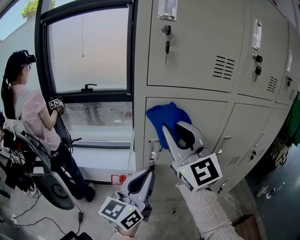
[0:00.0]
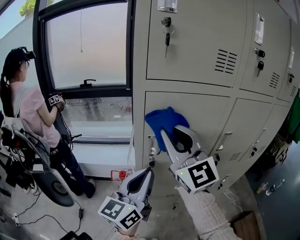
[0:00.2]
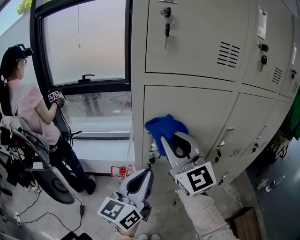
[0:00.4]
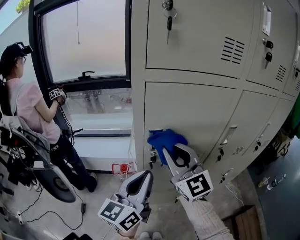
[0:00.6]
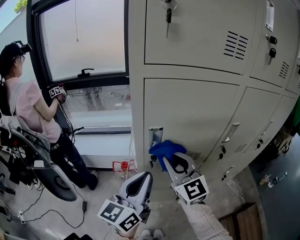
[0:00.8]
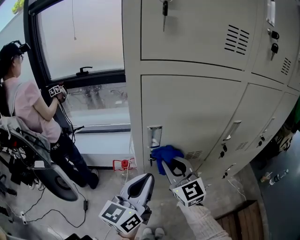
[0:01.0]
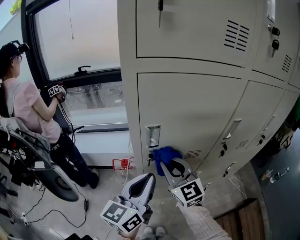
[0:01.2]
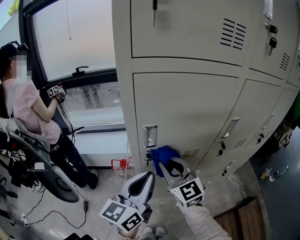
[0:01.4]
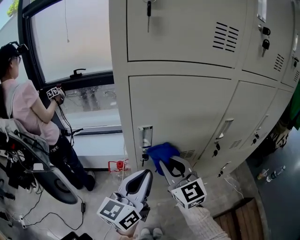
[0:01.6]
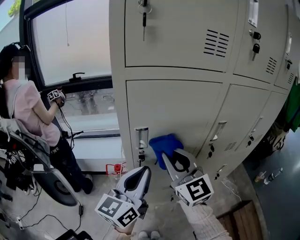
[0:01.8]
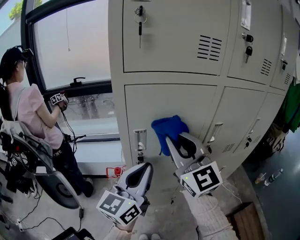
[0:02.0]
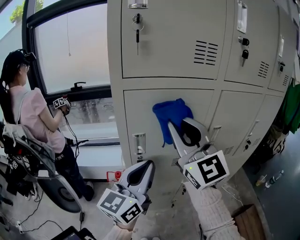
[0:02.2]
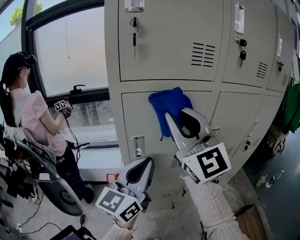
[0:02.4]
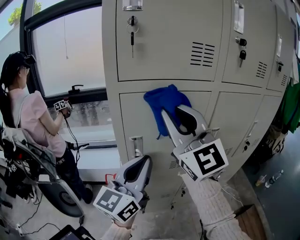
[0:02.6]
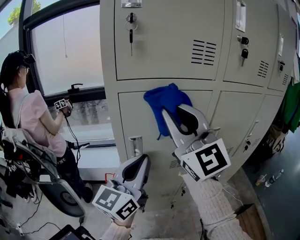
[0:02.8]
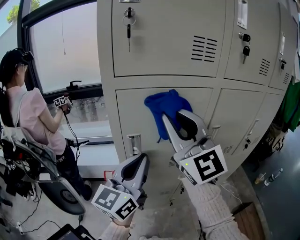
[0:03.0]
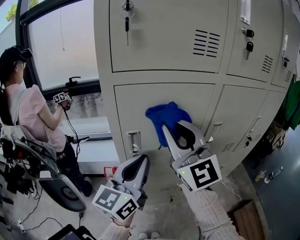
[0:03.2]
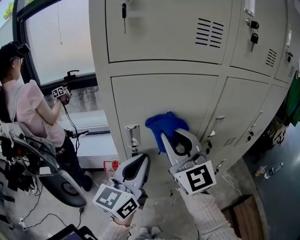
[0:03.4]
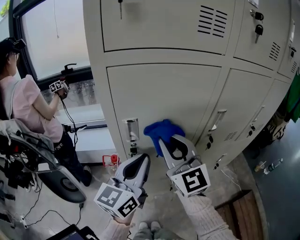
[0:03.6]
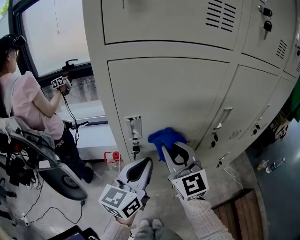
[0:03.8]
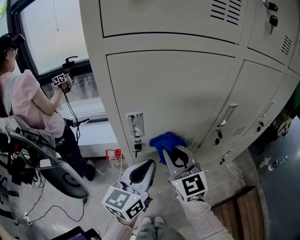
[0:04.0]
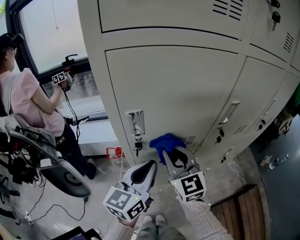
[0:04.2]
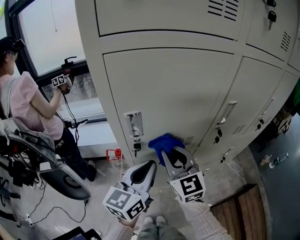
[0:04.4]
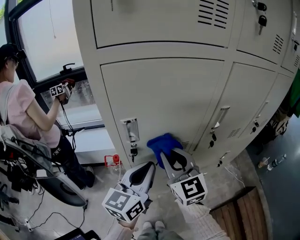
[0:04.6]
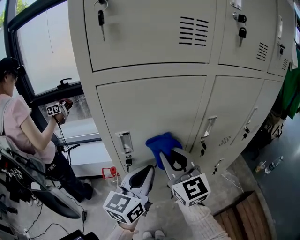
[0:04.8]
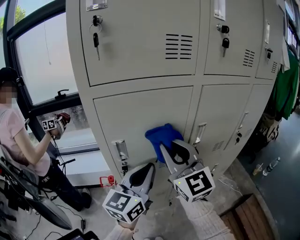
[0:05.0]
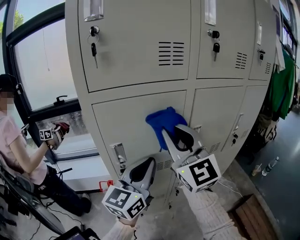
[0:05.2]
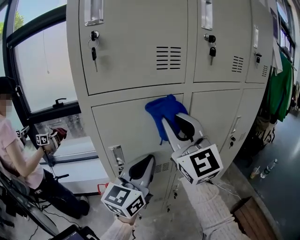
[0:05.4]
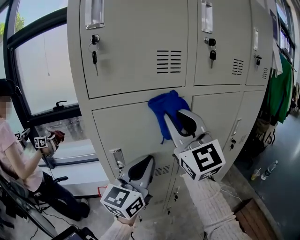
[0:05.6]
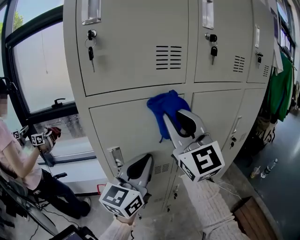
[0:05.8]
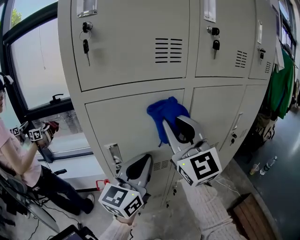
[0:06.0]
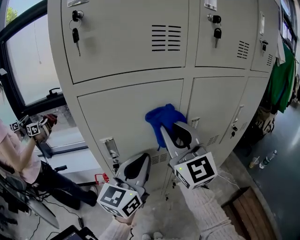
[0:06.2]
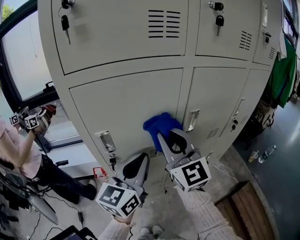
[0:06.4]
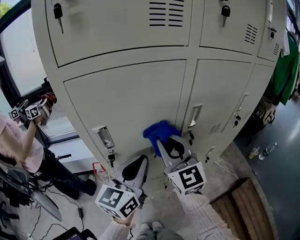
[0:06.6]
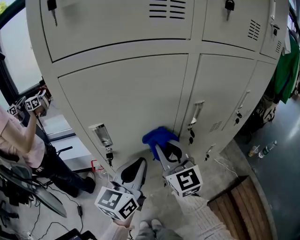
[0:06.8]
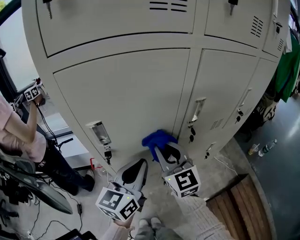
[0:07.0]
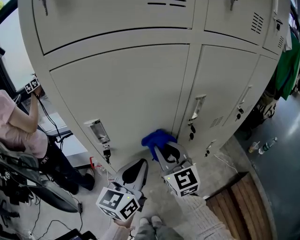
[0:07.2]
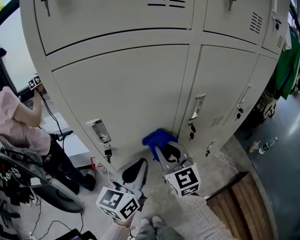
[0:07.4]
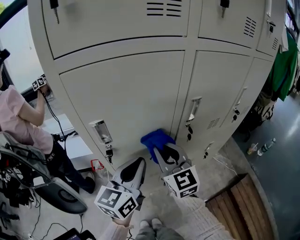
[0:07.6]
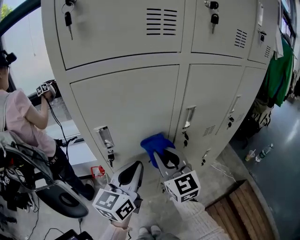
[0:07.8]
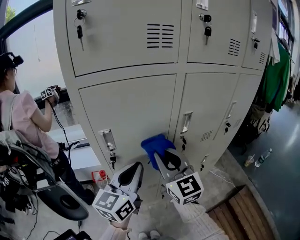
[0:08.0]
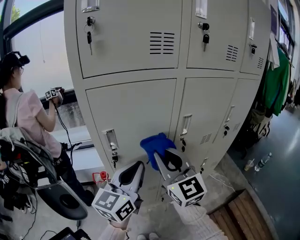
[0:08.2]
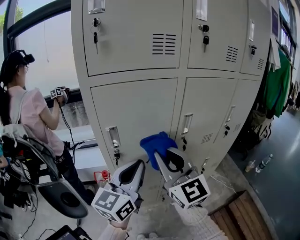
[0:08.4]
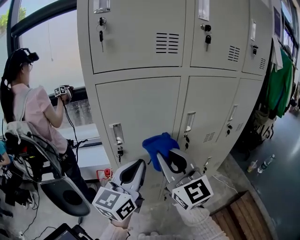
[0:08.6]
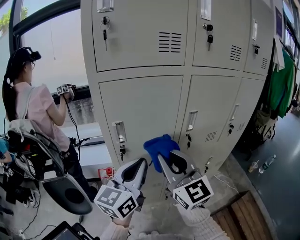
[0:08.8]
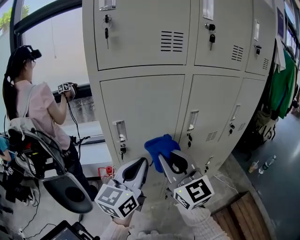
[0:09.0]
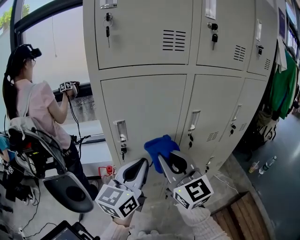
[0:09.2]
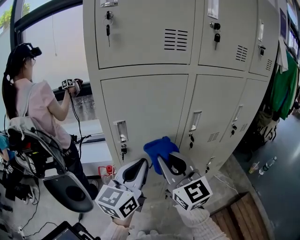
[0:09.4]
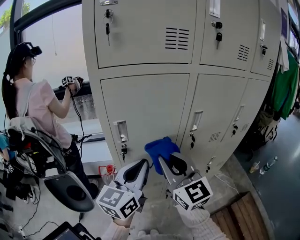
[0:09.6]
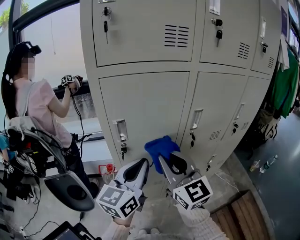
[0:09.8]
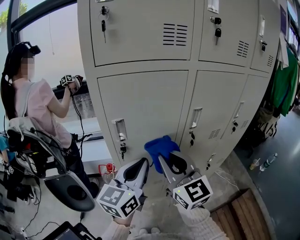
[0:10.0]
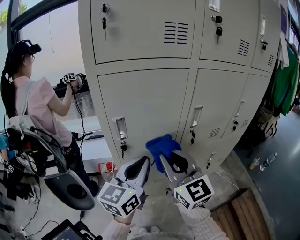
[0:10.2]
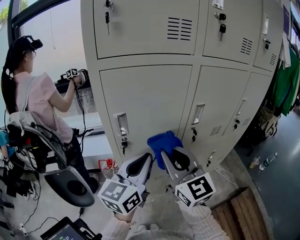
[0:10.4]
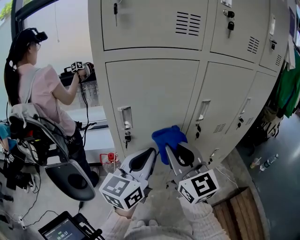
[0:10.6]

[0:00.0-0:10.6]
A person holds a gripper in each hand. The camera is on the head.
0.0 to 1.6 s: The left gripper goes roughly 5 cm downward. Meanwhile the right gripper shifts approximately 20 cm downward, and turns by roughly 20 degrees.
1.6 to 3.0 s: The right gripper moves upward, roughly 25 cm, and swivels approximately 30 degrees. The left gripper goes roughly 10 cm upward.
3.0 to 4.6 s: The left gripper is displaced downward by approximately 10 cm, while the right gripper travels downward by roughly 25 cm, and rotates about 30 degrees.
4.6 to 6.0 s: The left gripper shifts roughly 15 cm upward and to the right. The right gripper heads upward, covering approximately 20 cm, and changes its angle by roughly 20 degrees.
6.0 to 7.6 s: The left gripper travels downward by about 10 cm, while the right gripper heads downward, covering approximately 25 cm, and rotates roughly 20 degrees.
7.6 to 9.0 s: The right gripper goes approximately 15 cm upward and backward. Meanwhile the left gripper heads upward and backward, covering approximately 10 cm.
9.0 to 10.6 s: There are only small adjustments of the grippers.

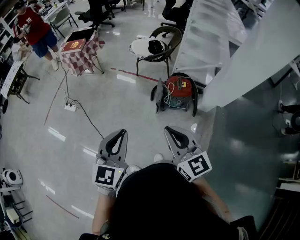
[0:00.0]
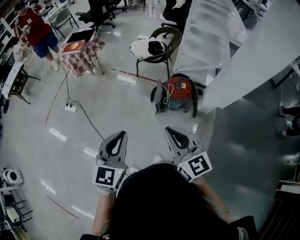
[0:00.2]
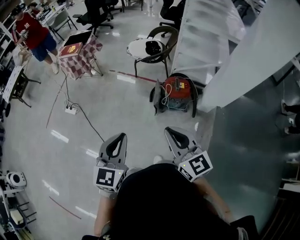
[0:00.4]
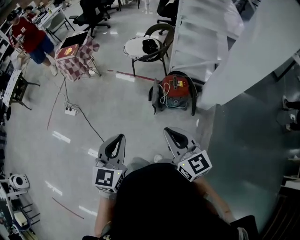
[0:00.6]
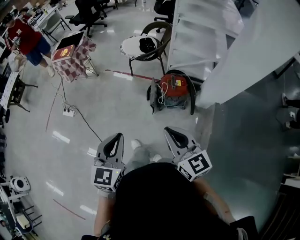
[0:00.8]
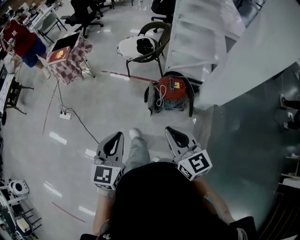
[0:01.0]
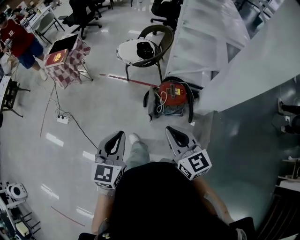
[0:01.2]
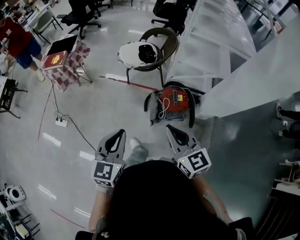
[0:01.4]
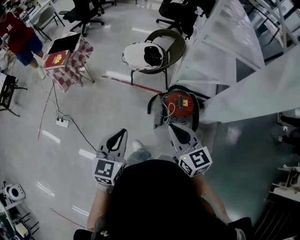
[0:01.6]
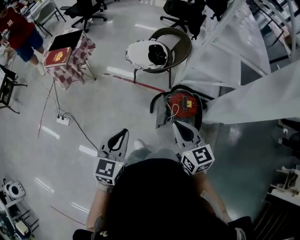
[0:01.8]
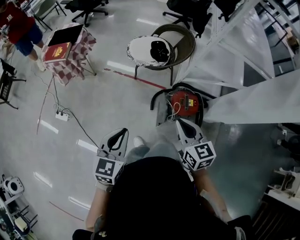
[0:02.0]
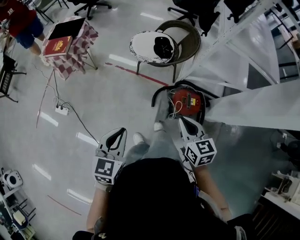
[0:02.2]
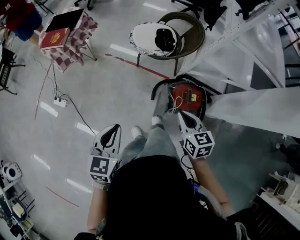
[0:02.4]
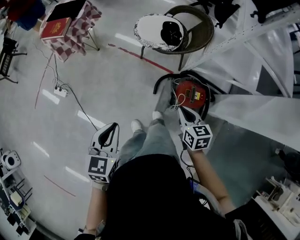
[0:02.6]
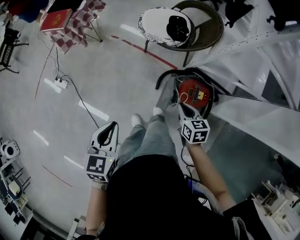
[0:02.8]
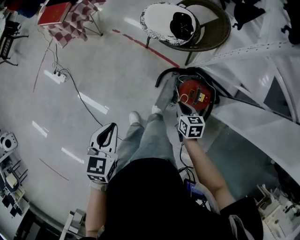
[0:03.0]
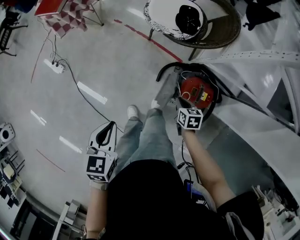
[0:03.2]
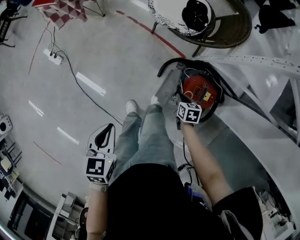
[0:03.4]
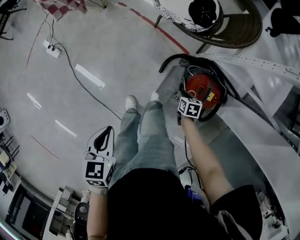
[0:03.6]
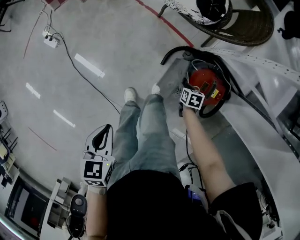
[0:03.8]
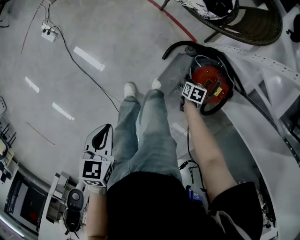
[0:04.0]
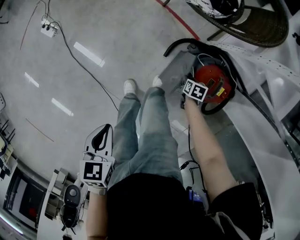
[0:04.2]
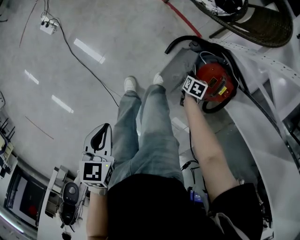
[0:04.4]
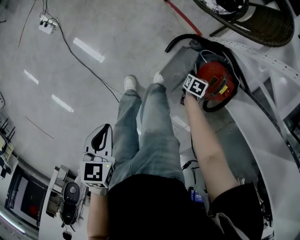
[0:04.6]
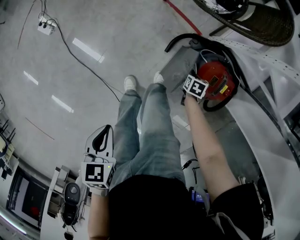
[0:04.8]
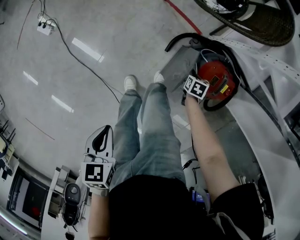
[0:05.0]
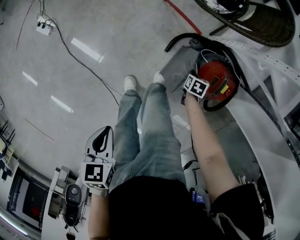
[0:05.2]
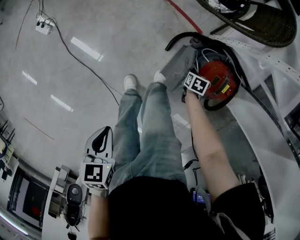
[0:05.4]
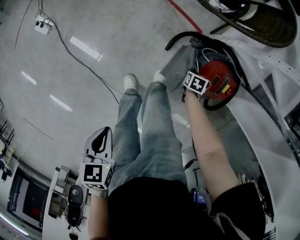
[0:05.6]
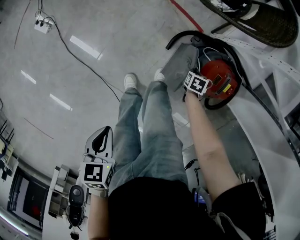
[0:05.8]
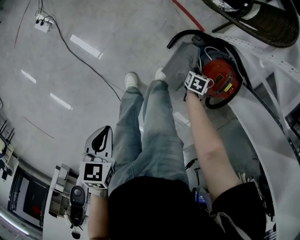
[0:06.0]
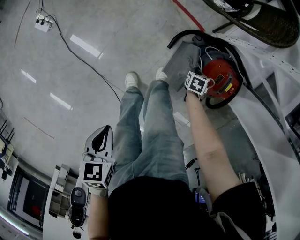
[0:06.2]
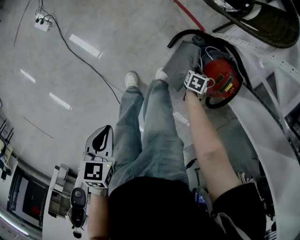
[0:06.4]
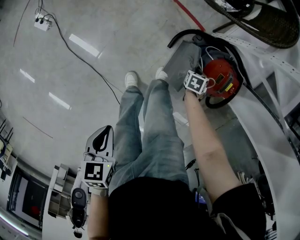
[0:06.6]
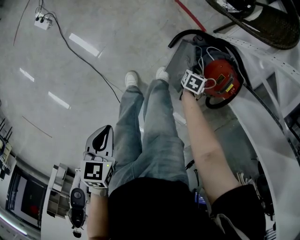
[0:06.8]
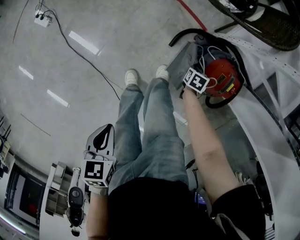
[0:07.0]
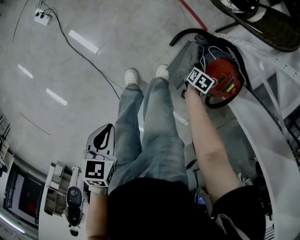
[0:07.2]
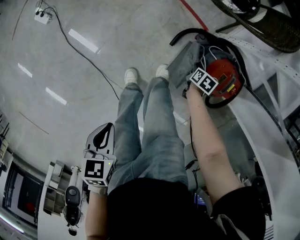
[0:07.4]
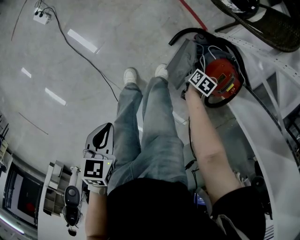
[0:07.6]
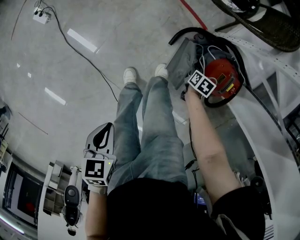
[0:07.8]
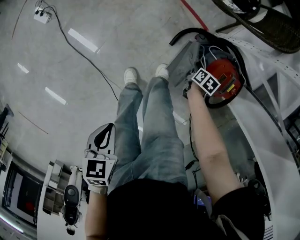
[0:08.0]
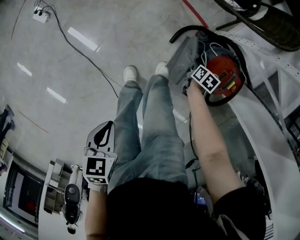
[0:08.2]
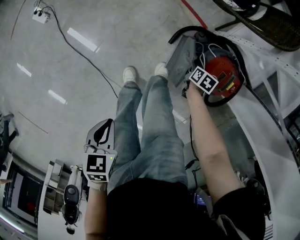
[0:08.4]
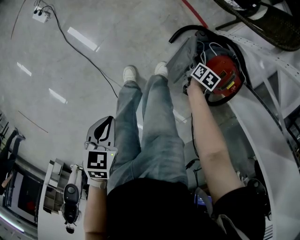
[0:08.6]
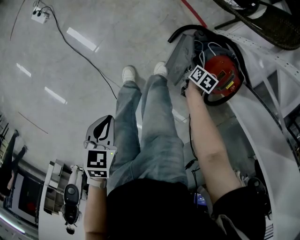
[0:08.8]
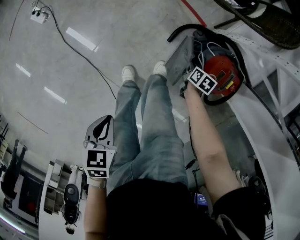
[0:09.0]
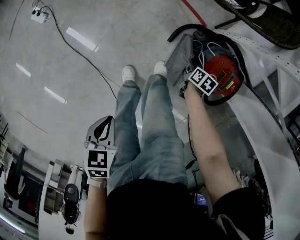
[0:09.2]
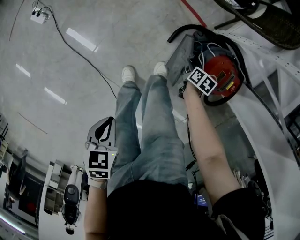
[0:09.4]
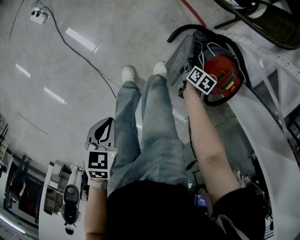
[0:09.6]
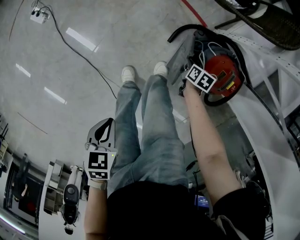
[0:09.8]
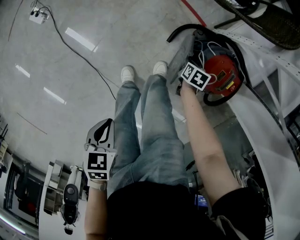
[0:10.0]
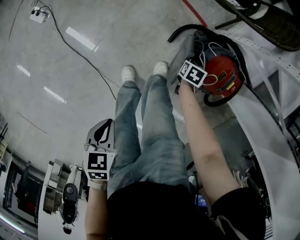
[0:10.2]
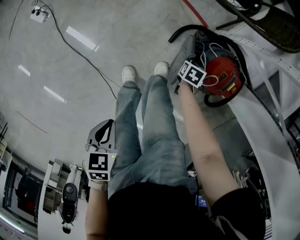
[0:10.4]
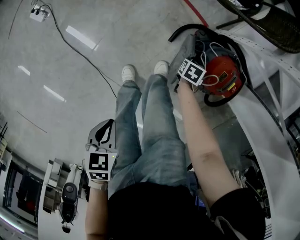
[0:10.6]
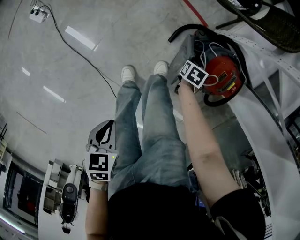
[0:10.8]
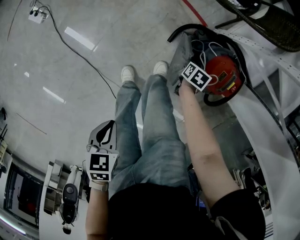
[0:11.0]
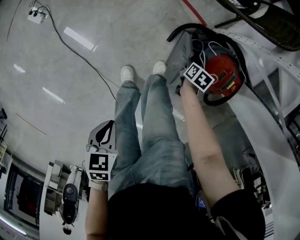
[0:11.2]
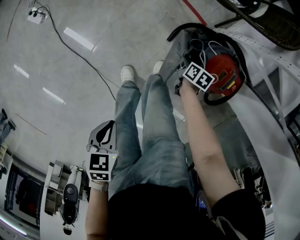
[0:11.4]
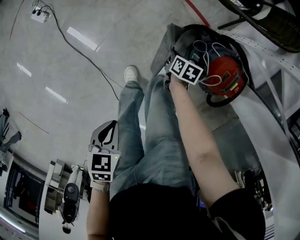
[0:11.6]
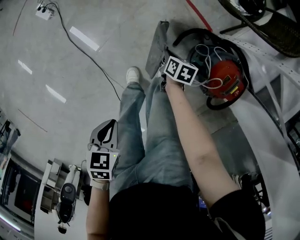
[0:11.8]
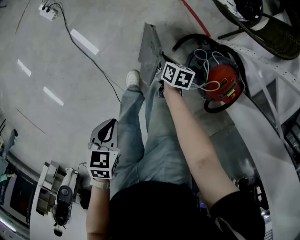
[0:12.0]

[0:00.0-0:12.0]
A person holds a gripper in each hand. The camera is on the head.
0.0 to 1.6 s: Both grippers travel together forward, some 30 cm.
1.6 to 3.0 s: The right gripper moves downward and forward, roughly 35 cm, and points its fingers about 30 degrees further downward, while the left gripper travels downward and forward by some 15 cm, and swivels approximately 30 degrees.
3.0 to 4.4 s: The right gripper moves downward, approximately 35 cm, changes its angle by some 30 degrees, and opens up; the left gripper shifts approximately 15 cm downward, and rotates approximately 20 degrees.
4.4 to 6.0 s: The right gripper closes its fingers.
6.0 to 7.6 s: The right gripper turns by some 20 degrees.
7.6 to 9.0 s: The grippers move only a little.
9.0 to 10.4 s: The right gripper turns by approximately 20 degrees.
10.4 to 12.0 s: The right gripper ends up some 20 cm from where it was, and swivels some 30 degrees.

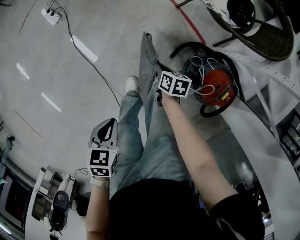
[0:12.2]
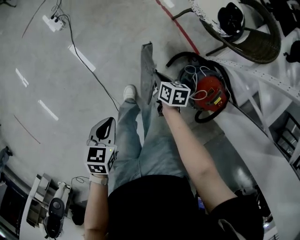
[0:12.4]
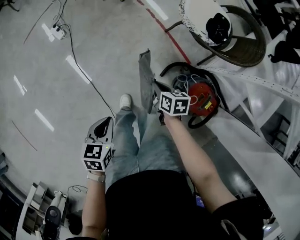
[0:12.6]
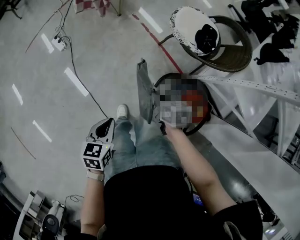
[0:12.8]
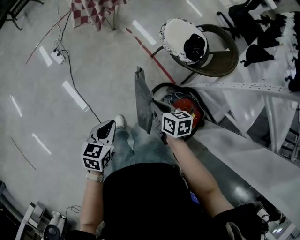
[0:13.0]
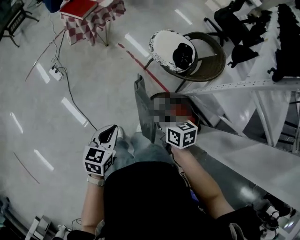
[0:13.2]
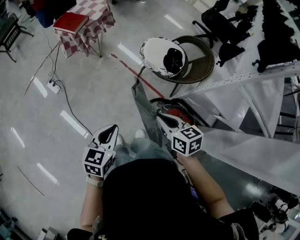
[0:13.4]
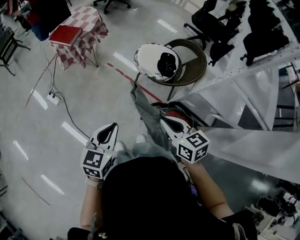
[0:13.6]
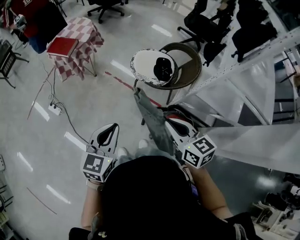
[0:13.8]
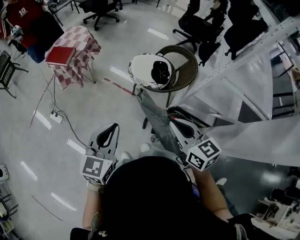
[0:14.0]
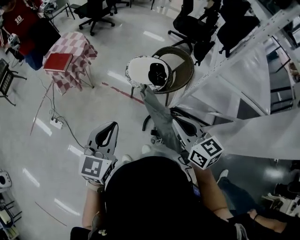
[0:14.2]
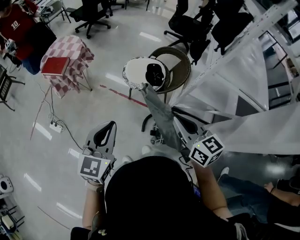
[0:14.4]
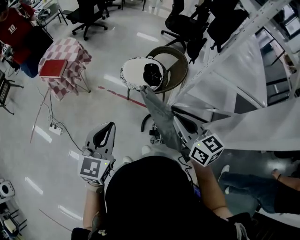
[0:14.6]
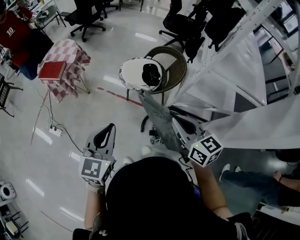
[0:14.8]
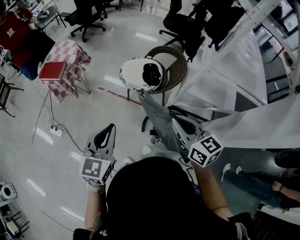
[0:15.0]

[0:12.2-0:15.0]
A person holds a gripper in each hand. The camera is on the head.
12.2 to 13.6 s: The right gripper goes approximately 50 cm upward, and rotates approximately 40 degrees; the left gripper is displaced upward and forward by roughly 35 cm, and points its fingers roughly 40 degrees further upward.
13.6 to 15.0 s: The left gripper shifts approximately 10 cm upward. The right gripper heads upward and to the right, covering about 10 cm, and changes its angle by roughly 20 degrees.
